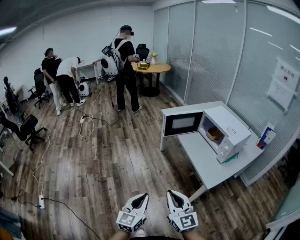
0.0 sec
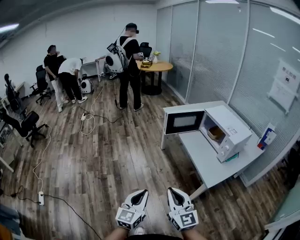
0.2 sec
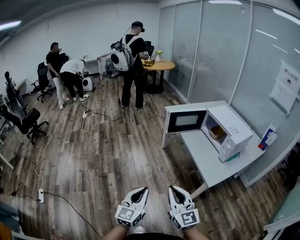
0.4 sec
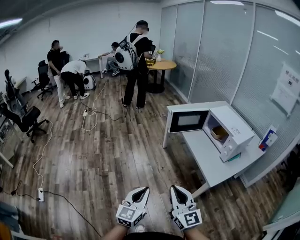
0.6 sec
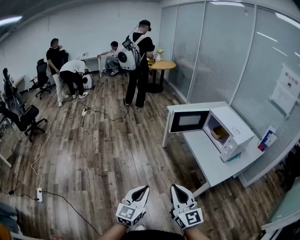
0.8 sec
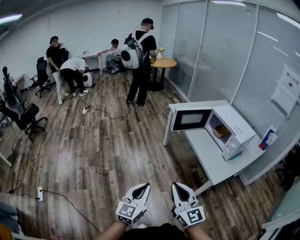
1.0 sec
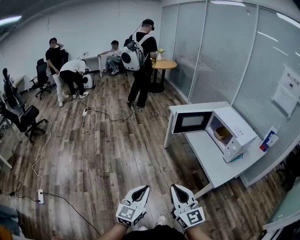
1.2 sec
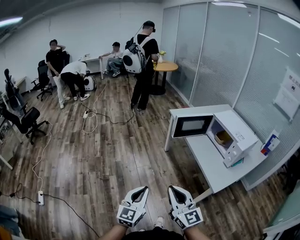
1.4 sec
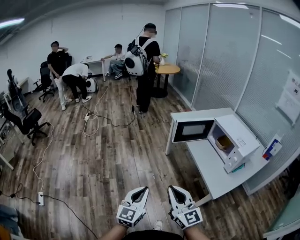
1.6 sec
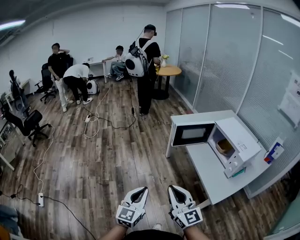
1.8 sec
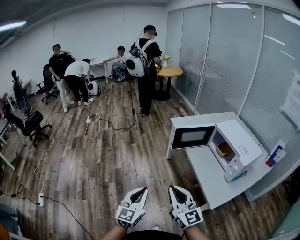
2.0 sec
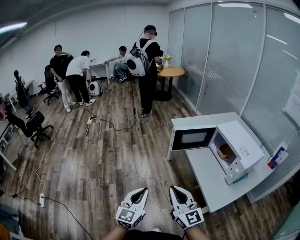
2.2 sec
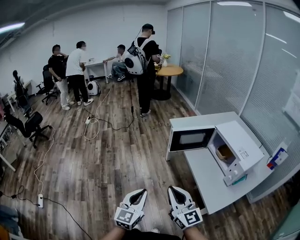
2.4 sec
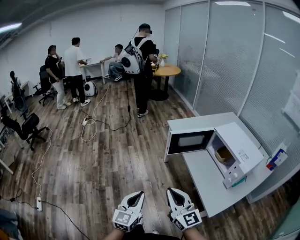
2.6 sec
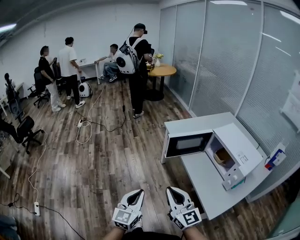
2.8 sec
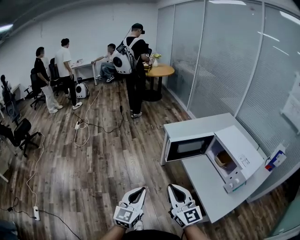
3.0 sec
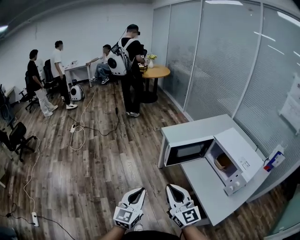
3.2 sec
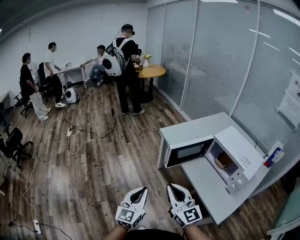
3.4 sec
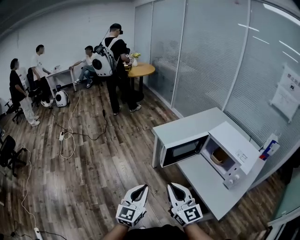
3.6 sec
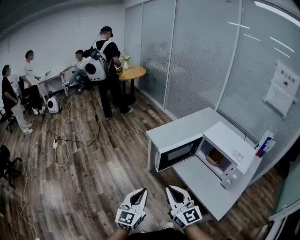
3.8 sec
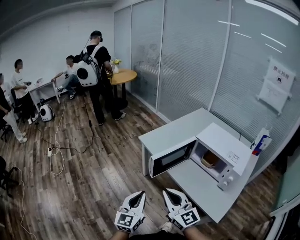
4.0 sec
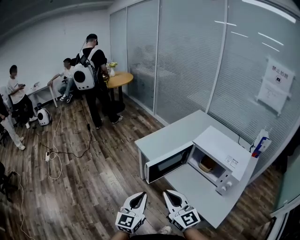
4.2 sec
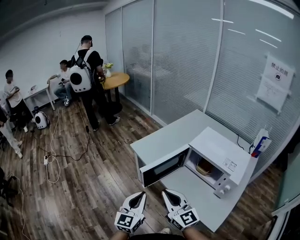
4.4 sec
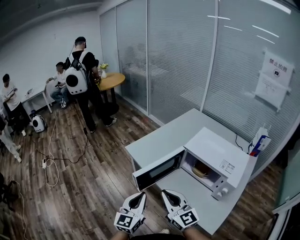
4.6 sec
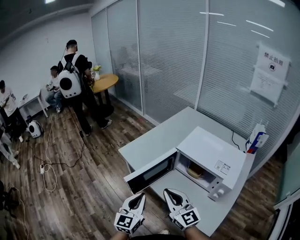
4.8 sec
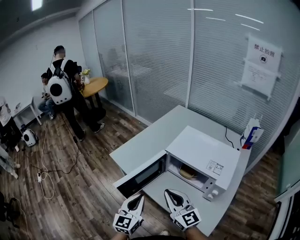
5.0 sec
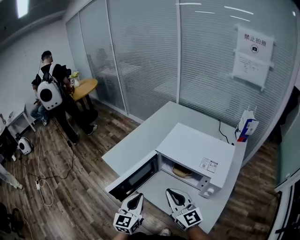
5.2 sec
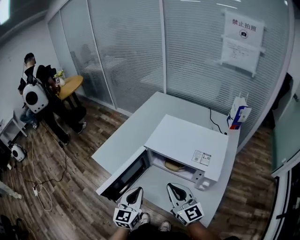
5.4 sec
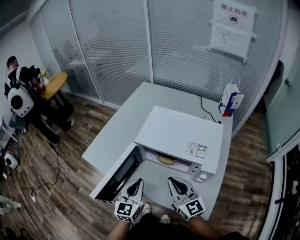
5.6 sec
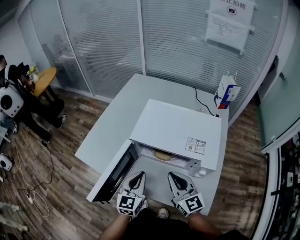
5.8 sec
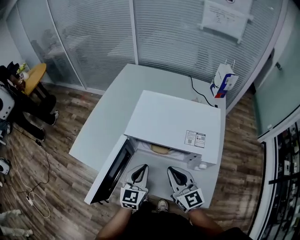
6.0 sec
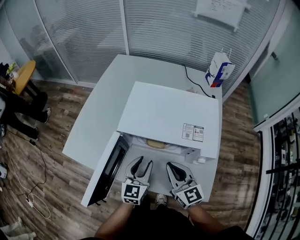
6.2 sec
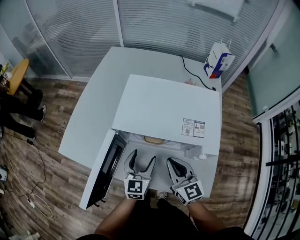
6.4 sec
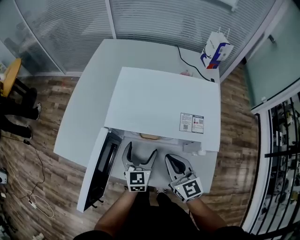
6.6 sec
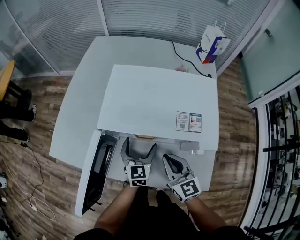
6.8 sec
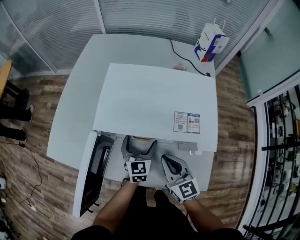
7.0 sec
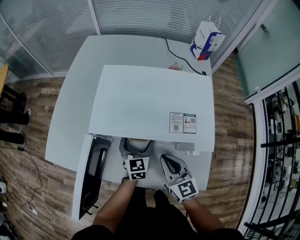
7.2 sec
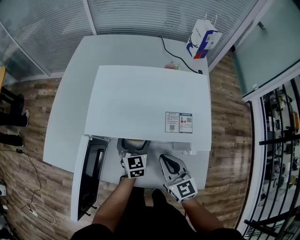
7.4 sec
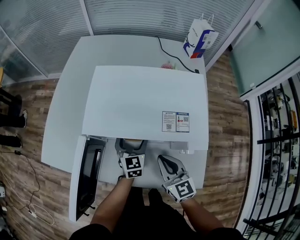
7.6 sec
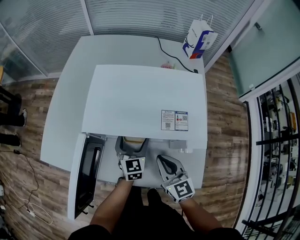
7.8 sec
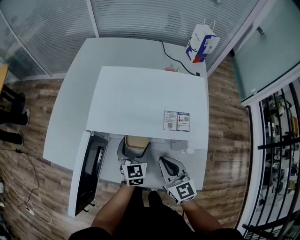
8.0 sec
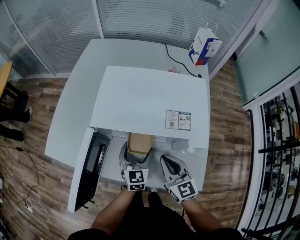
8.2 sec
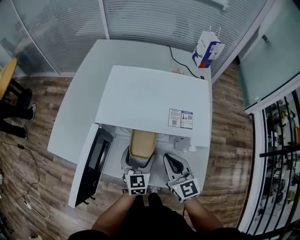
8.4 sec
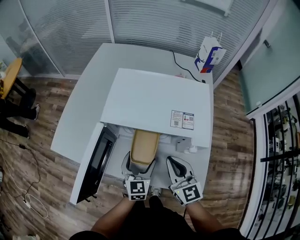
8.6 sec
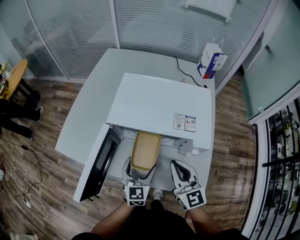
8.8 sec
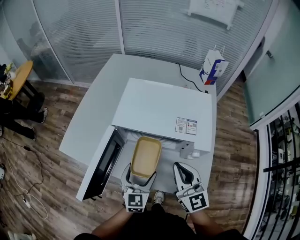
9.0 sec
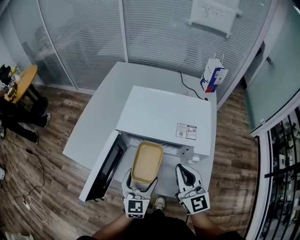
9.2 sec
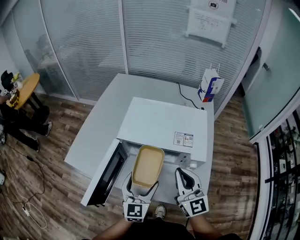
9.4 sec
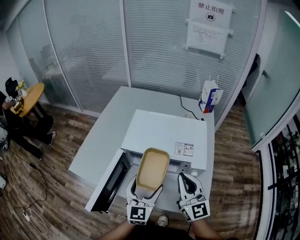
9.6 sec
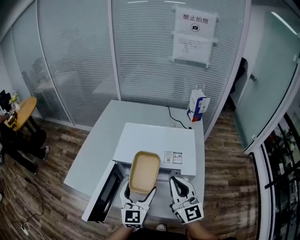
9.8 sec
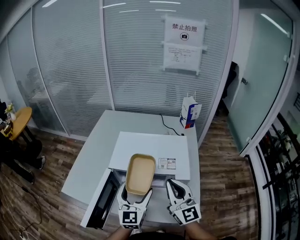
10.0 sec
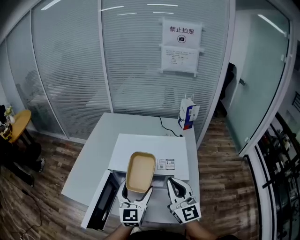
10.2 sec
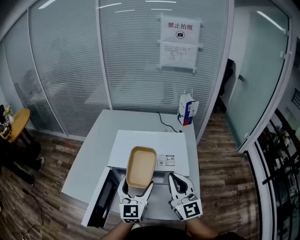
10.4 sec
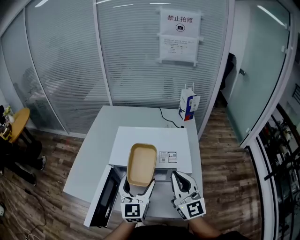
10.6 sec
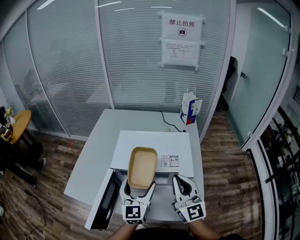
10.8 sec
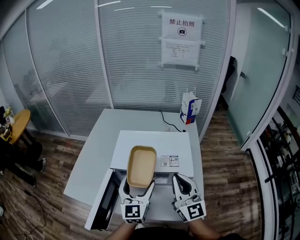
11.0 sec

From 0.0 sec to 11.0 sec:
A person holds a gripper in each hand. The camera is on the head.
From 0.0 sec to 1.6 sec: The right gripper moves forward and to the left, approximately 10 cm; the left gripper travels forward by roughly 10 cm.
From 1.6 sec to 3.2 sec: The grippers both shift forward by roughly 25 cm.
From 3.2 sec to 4.8 sec: Both grippers move forward and to the right, approximately 25 cm. The left gripper rotates some 20 degrees.
From 4.8 sec to 6.2 sec: The left gripper changes place by approximately 30 cm, and swivels about 30 degrees, while the right gripper changes place by roughly 25 cm, and rotates some 40 degrees.
From 6.2 sec to 7.8 sec: The left gripper heads downward, forward and to the right, covering about 15 cm, and opens its fingers. Meanwhile the right gripper is displaced downward by some 5 cm.
From 7.8 sec to 9.4 sec: The right gripper heads upward, covering about 15 cm, and turns by about 20 degrees; the left gripper moves backward and upward, about 20 cm.
From 9.4 sec to 11.0 sec: The left gripper goes some 10 cm upward and forward; the right gripper moves upward, roughly 10 cm.

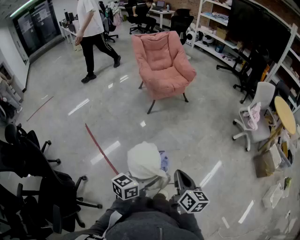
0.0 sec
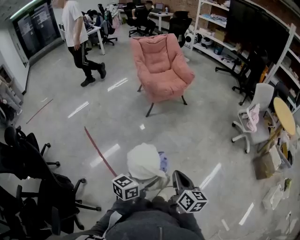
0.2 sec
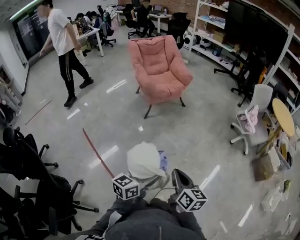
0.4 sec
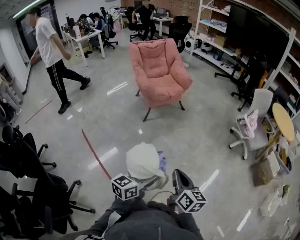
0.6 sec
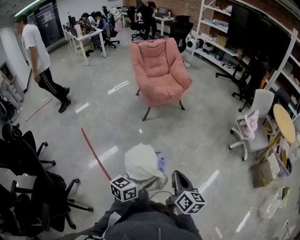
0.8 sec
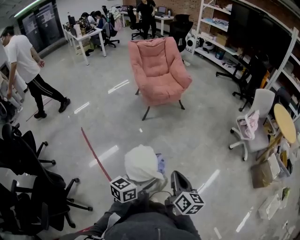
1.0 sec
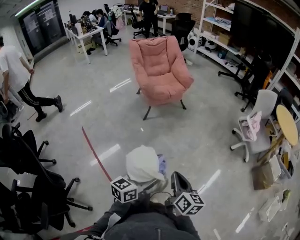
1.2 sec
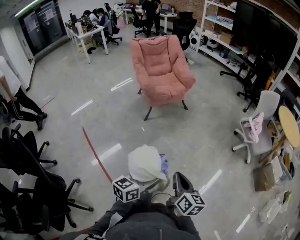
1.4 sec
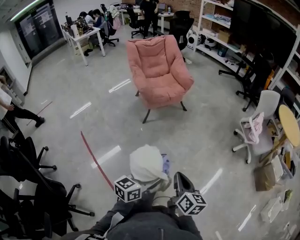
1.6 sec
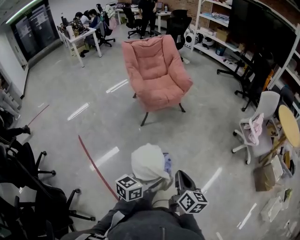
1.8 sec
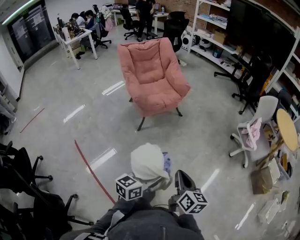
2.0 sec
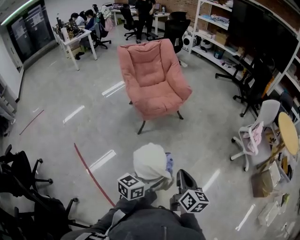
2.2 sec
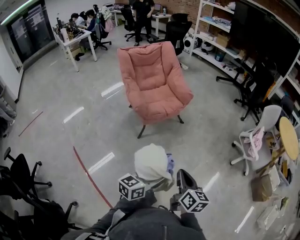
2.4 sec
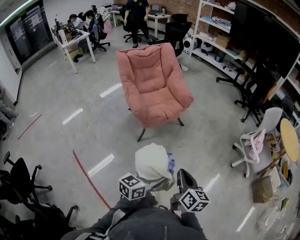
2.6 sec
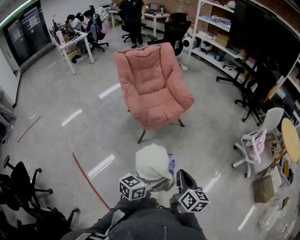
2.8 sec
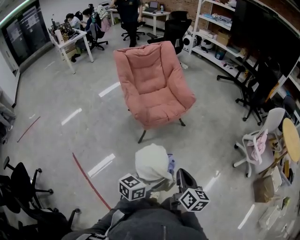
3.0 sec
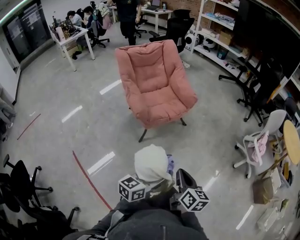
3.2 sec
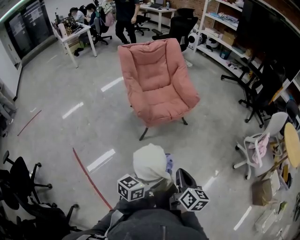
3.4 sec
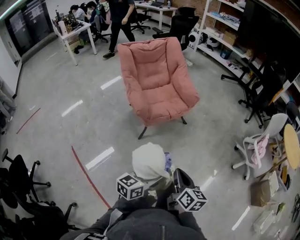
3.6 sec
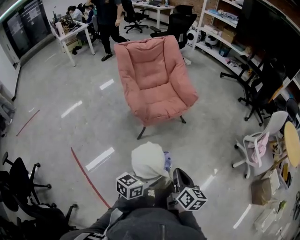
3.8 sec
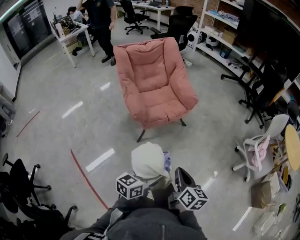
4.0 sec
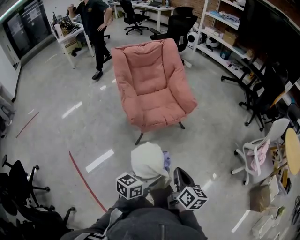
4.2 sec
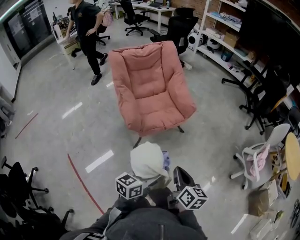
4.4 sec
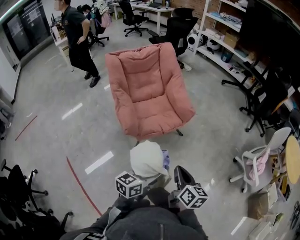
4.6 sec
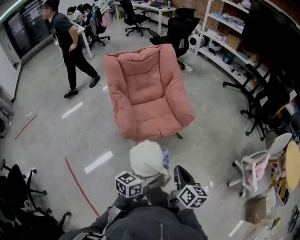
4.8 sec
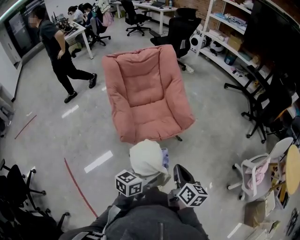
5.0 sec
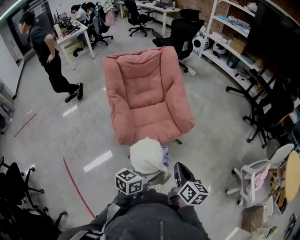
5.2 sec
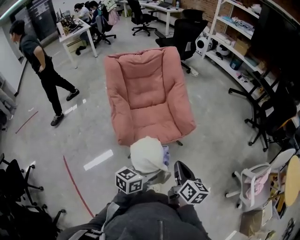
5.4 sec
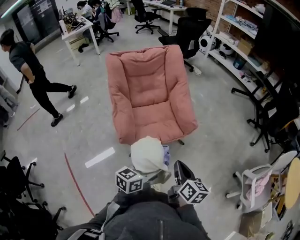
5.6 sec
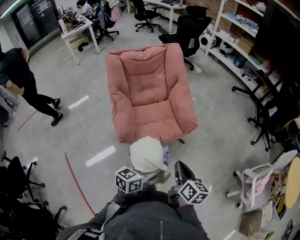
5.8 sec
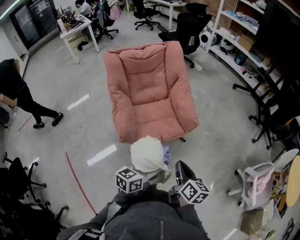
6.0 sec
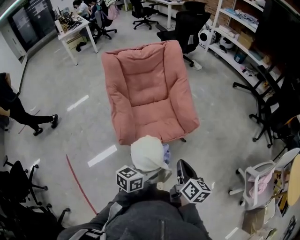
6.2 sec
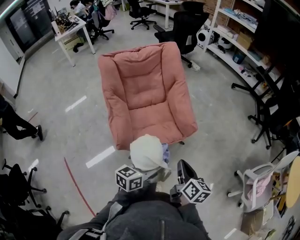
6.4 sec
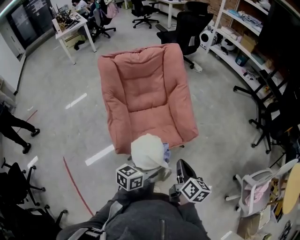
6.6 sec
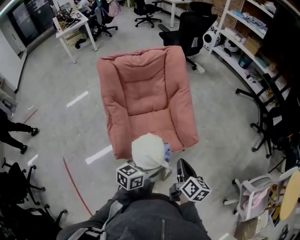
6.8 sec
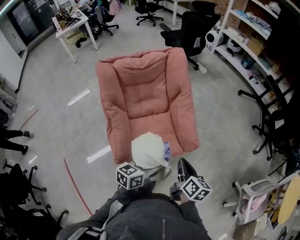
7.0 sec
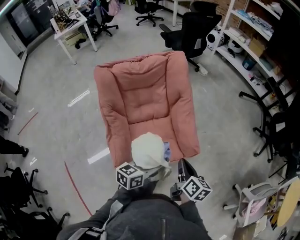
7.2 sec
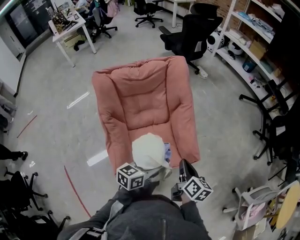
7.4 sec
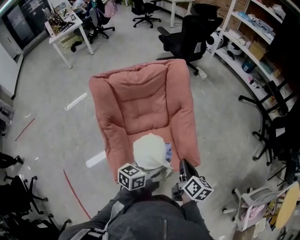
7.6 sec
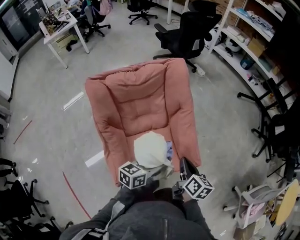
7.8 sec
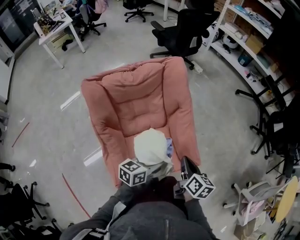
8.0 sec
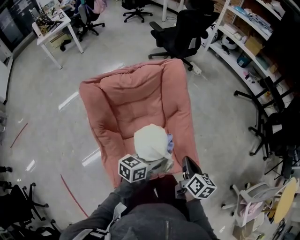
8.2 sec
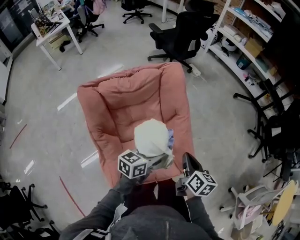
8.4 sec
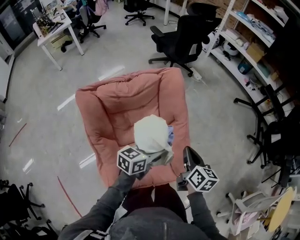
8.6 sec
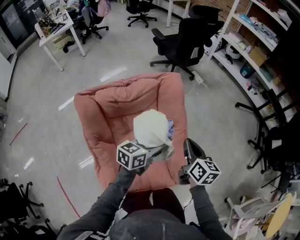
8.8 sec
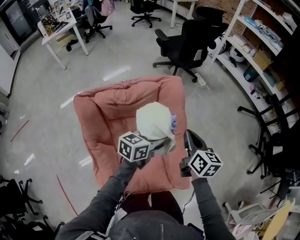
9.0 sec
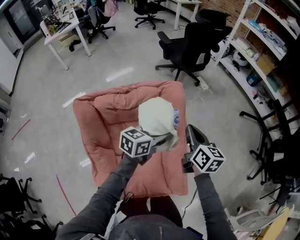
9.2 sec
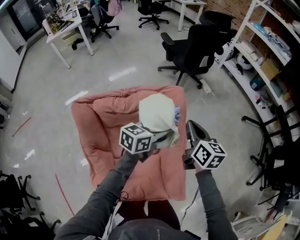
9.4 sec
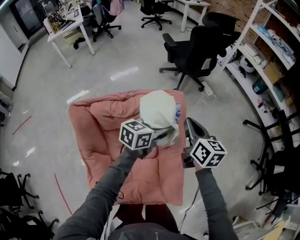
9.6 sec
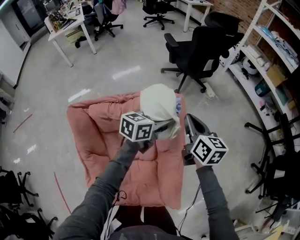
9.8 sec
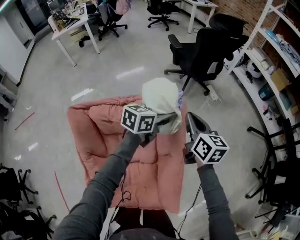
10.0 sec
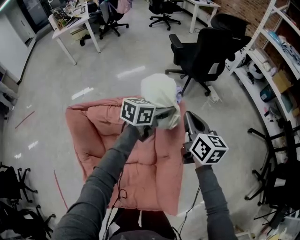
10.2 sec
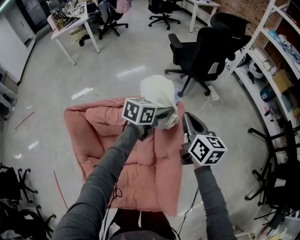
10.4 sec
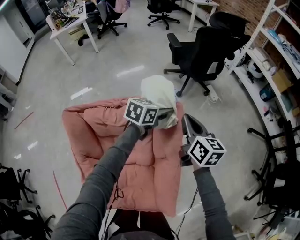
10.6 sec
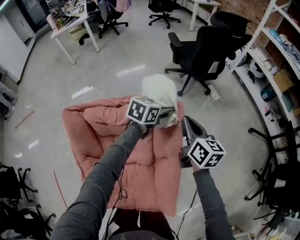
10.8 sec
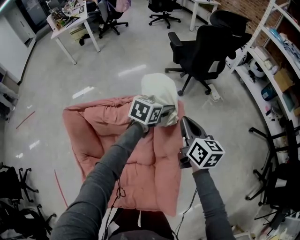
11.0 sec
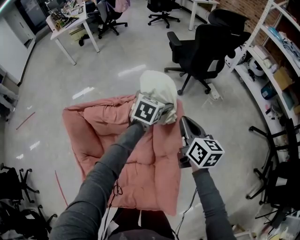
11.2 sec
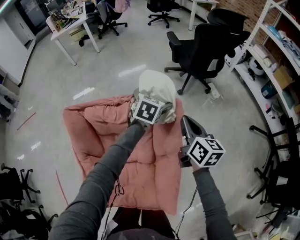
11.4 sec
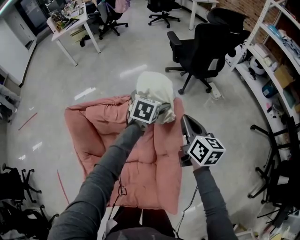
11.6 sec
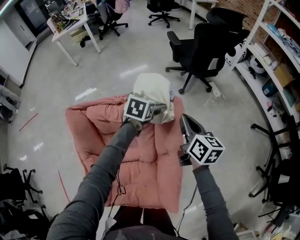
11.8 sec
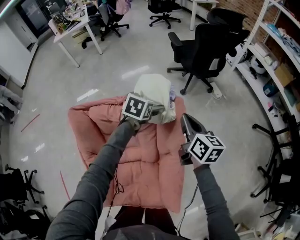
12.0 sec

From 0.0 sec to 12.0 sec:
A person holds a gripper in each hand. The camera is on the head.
From 0.0 sec to 1.6 sec: Both grippers travel together forward and to the right, approximately 15 cm.
From 1.6 sec to 3.0 sec: The two grippers go about 30 cm forward and to the left.
From 3.0 sec to 4.4 sec: The two grippers go roughly 15 cm forward.
From 4.4 sec to 6.0 sec: Both grippers travel together forward, some 20 cm.
From 6.0 sec to 7.6 sec: The grippers both shift forward by some 30 cm.
From 7.6 sec to 9.0 sec: The grippers both shift forward by approximately 30 cm.
From 9.0 sec to 10.4 sec: Both grippers move forward, some 25 cm.
From 10.4 sec to 12.0 sec: The left gripper travels to the left by about 5 cm, turns by roughly 30 degrees, and opens up.

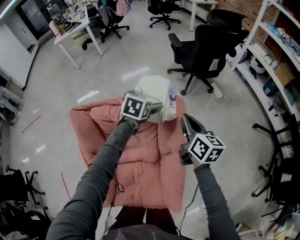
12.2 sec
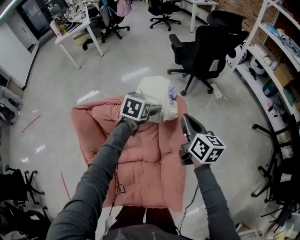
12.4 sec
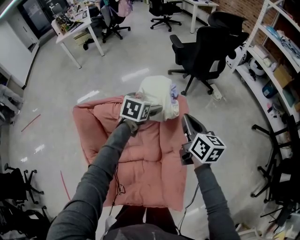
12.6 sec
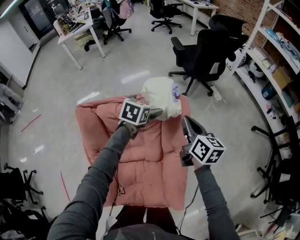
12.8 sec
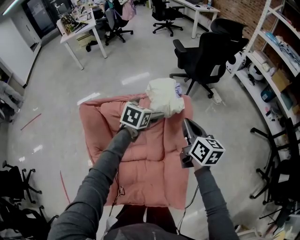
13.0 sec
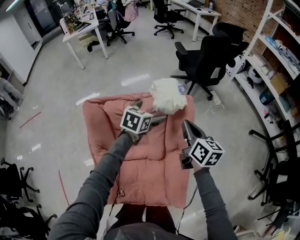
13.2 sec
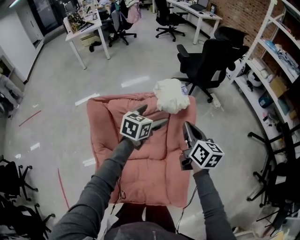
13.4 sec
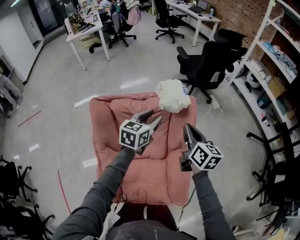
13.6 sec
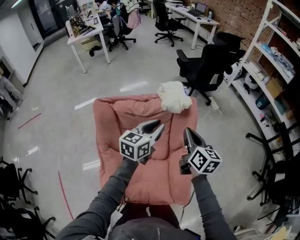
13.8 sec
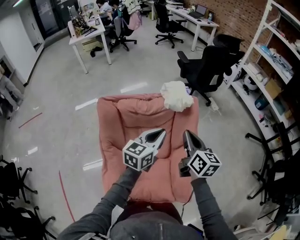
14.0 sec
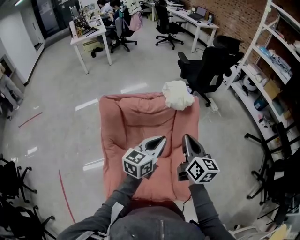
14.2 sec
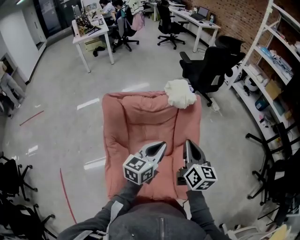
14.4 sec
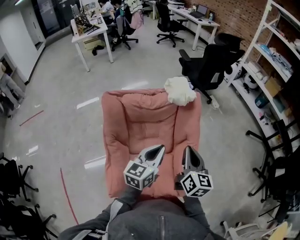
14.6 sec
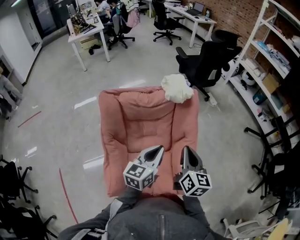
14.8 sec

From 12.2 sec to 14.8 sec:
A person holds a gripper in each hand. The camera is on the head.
From 12.2 sec to 13.4 sec: The left gripper moves backward, roughly 15 cm; the right gripper heads backward and to the left, covering some 10 cm.
From 13.4 sec to 14.8 sec: The two grippers go some 25 cm backward. The left gripper closes up.
